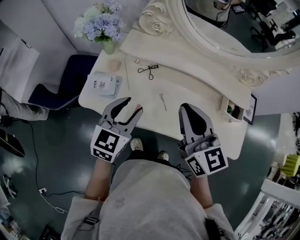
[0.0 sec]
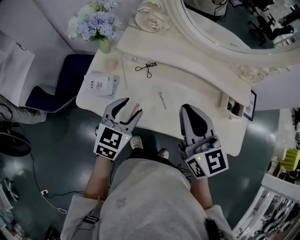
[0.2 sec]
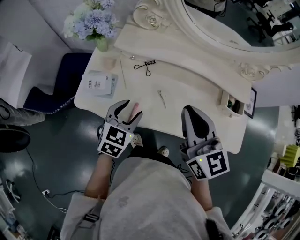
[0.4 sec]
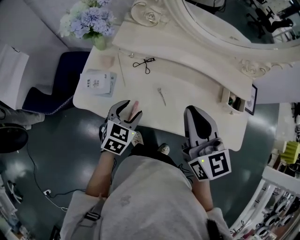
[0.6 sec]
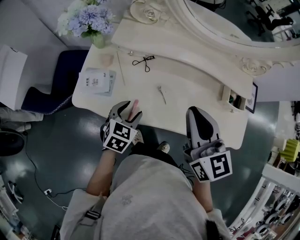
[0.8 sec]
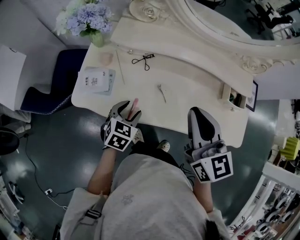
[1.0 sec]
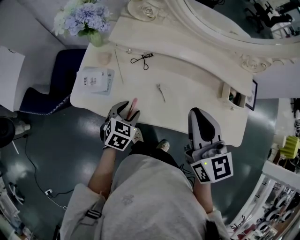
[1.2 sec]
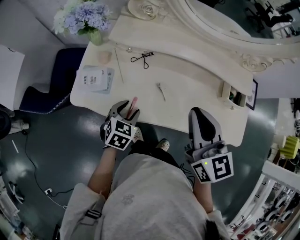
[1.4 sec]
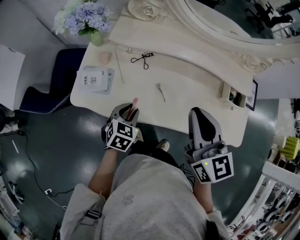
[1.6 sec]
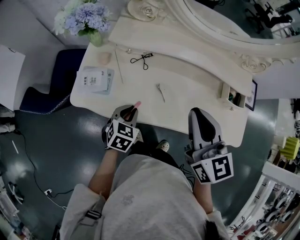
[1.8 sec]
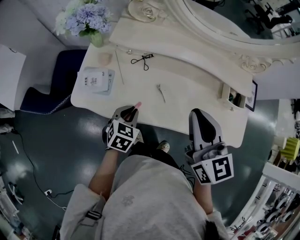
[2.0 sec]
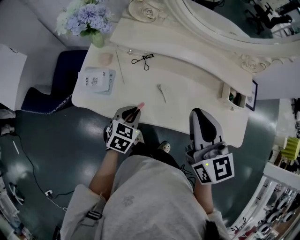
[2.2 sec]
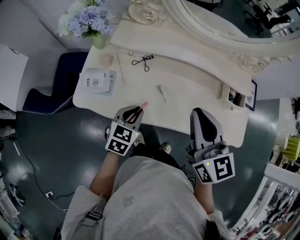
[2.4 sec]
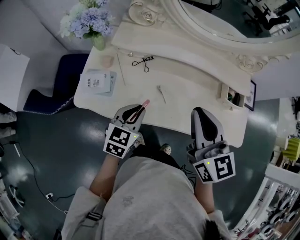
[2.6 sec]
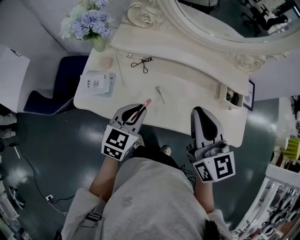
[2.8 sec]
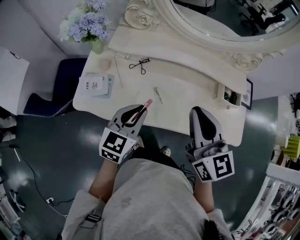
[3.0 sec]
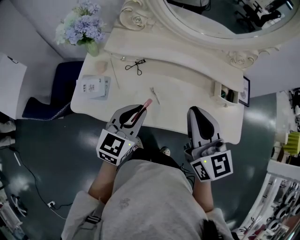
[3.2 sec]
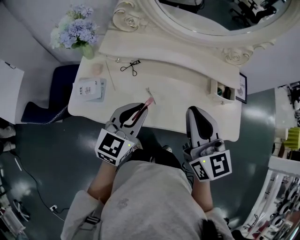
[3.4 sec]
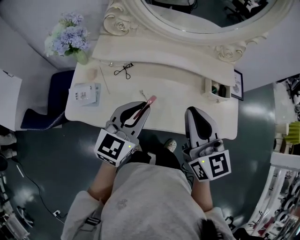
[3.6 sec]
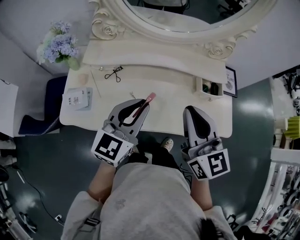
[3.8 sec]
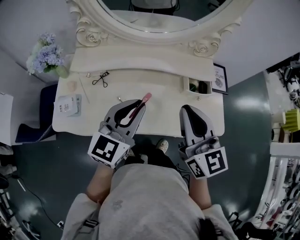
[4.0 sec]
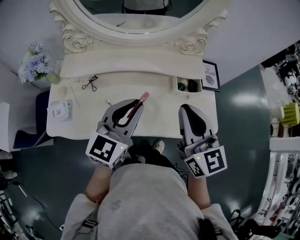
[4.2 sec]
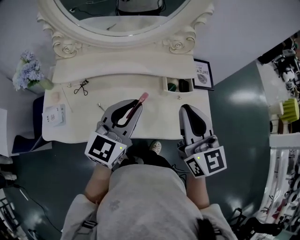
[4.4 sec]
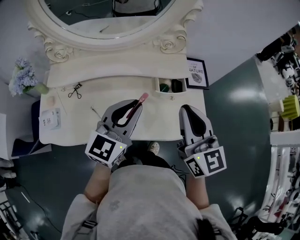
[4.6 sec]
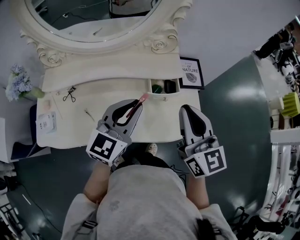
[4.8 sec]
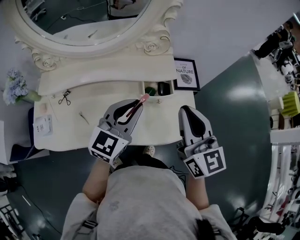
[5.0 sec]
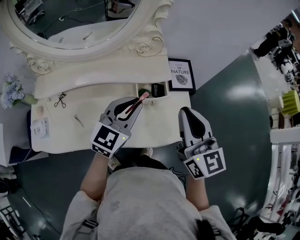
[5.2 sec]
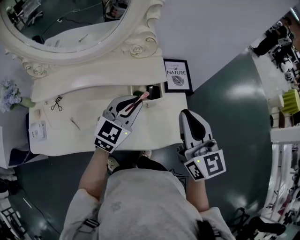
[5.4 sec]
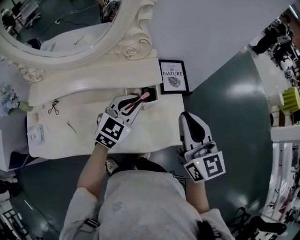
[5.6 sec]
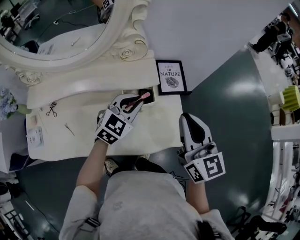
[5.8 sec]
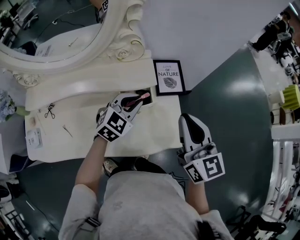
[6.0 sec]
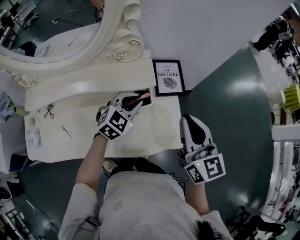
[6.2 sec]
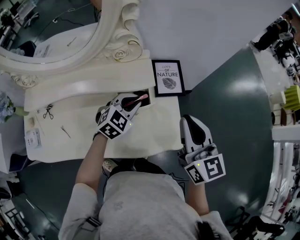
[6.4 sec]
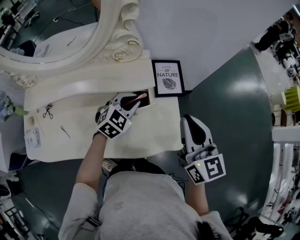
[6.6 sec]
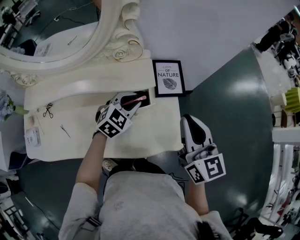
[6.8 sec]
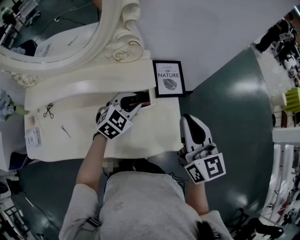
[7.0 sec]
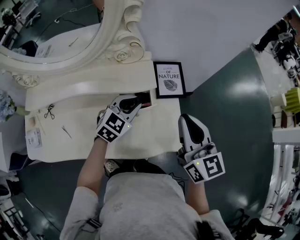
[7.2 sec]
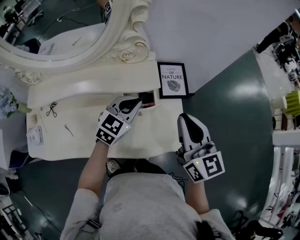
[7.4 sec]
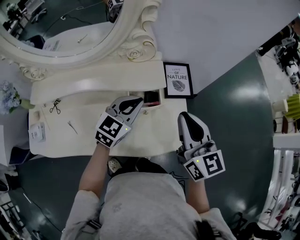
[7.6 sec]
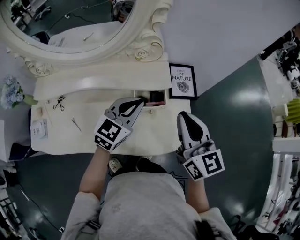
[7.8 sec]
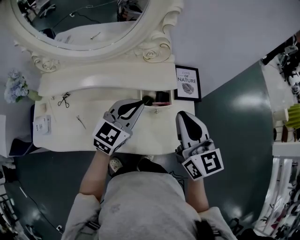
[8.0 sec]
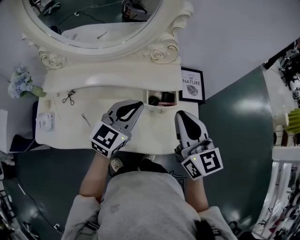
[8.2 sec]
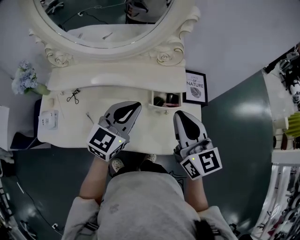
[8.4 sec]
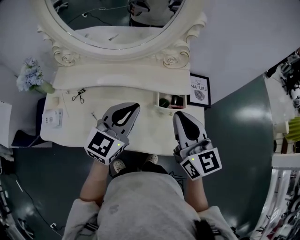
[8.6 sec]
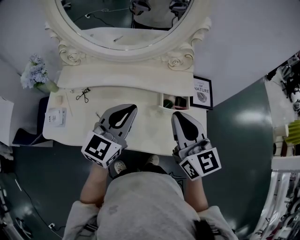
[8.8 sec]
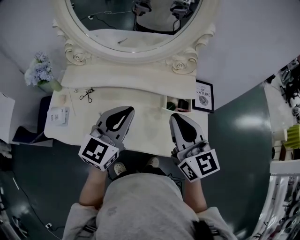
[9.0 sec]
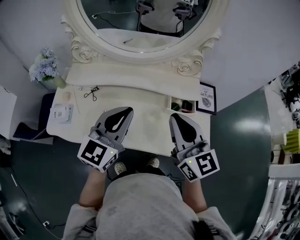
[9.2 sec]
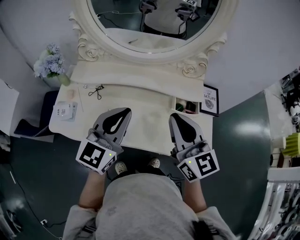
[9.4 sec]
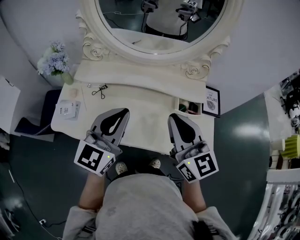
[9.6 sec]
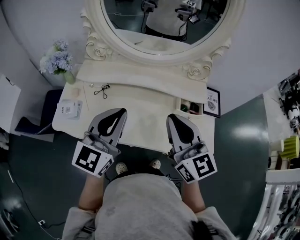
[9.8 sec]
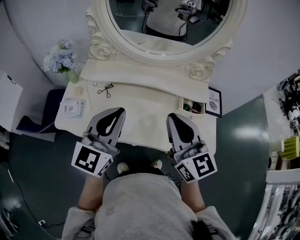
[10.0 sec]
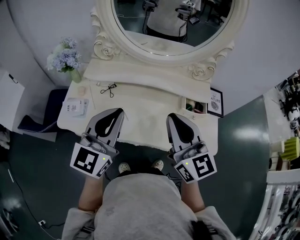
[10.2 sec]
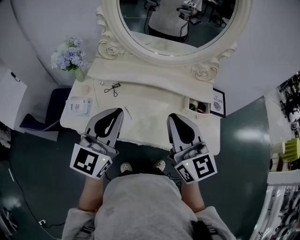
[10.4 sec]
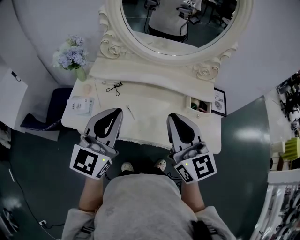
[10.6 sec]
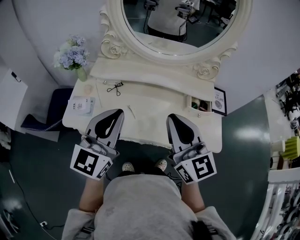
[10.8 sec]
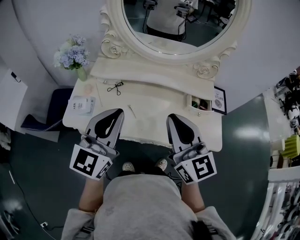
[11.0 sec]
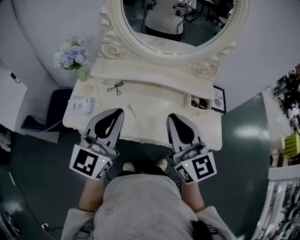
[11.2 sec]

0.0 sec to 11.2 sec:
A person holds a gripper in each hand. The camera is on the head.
0.0 sec to 1.6 sec: The left gripper goes some 15 cm downward, and rotates about 30 degrees.
1.6 sec to 3.2 sec: The left gripper goes roughly 15 cm upward, and angles its fingers upward, by roughly 30 degrees.
3.2 sec to 4.8 sec: Both grippers move to the right, roughly 30 cm. The left gripper rotates some 20 degrees.
4.8 sec to 6.4 sec: The left gripper moves downward, forward and to the right, some 25 cm, and changes its angle by approximately 40 degrees, while the right gripper goes roughly 15 cm to the right and forward.
6.4 sec to 8.0 sec: The left gripper goes some 15 cm upward, to the left and backward, and changes its angle by approximately 30 degrees. Meanwhile the right gripper is displaced to the left by some 10 cm.
8.0 sec to 9.6 sec: The left gripper shifts roughly 30 cm to the left, upward and backward, and turns by roughly 30 degrees, while the right gripper travels to the left by approximately 20 cm.
9.6 sec to 11.2 sec: The grippers both shift to the left and backward by some 10 cm.

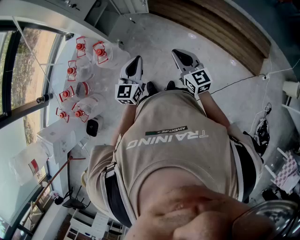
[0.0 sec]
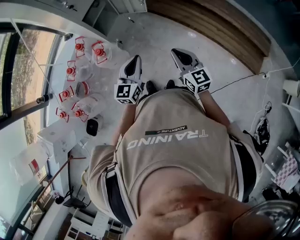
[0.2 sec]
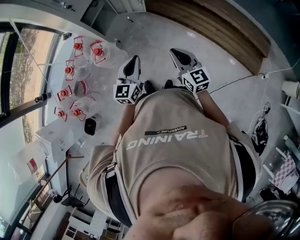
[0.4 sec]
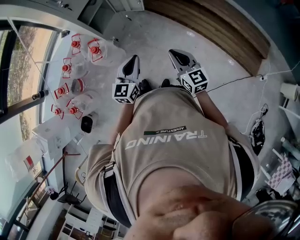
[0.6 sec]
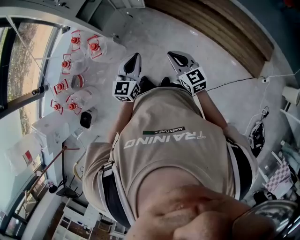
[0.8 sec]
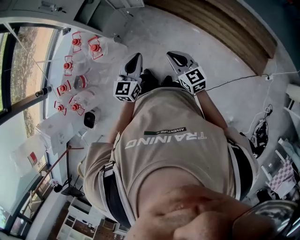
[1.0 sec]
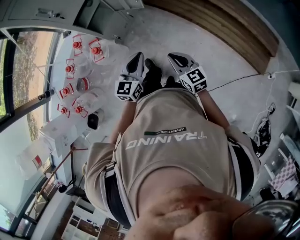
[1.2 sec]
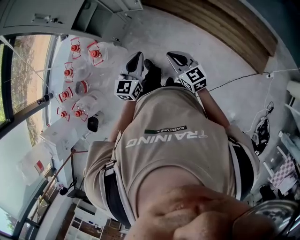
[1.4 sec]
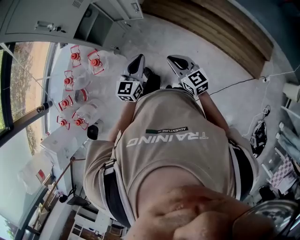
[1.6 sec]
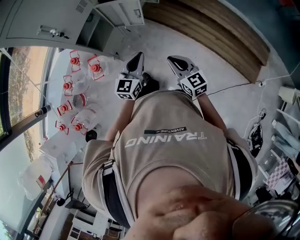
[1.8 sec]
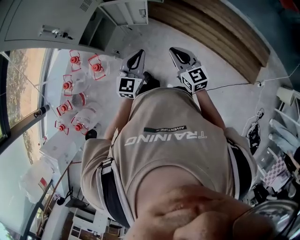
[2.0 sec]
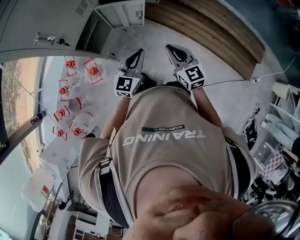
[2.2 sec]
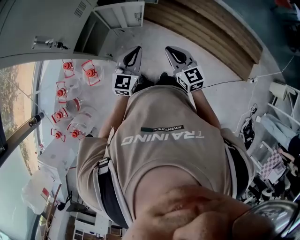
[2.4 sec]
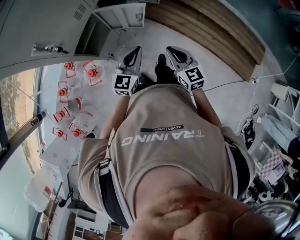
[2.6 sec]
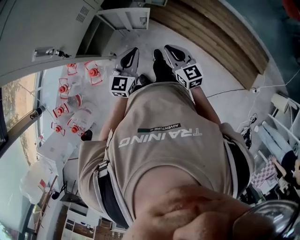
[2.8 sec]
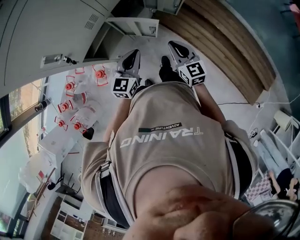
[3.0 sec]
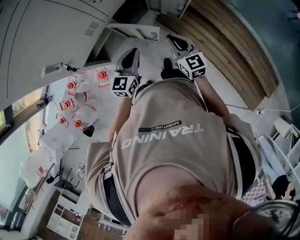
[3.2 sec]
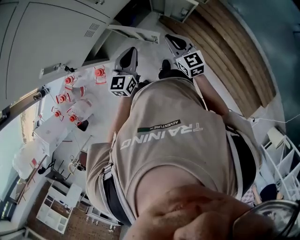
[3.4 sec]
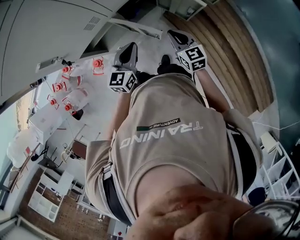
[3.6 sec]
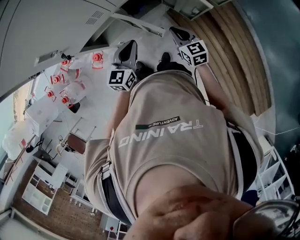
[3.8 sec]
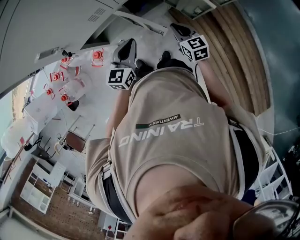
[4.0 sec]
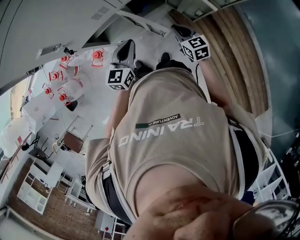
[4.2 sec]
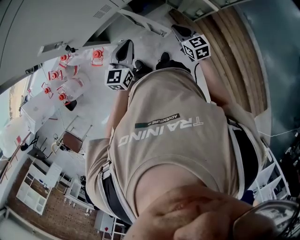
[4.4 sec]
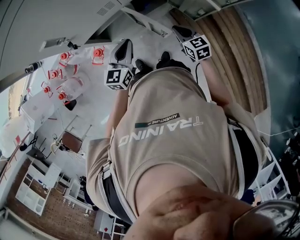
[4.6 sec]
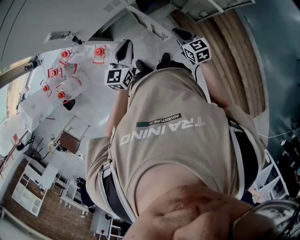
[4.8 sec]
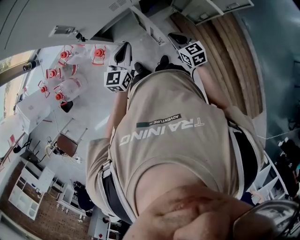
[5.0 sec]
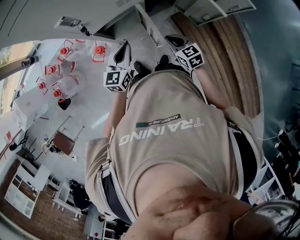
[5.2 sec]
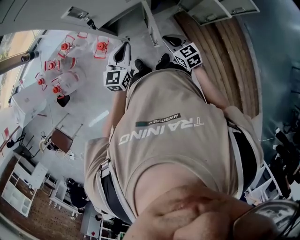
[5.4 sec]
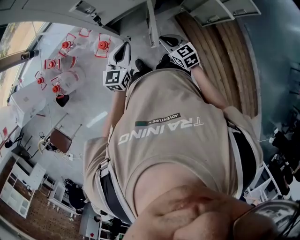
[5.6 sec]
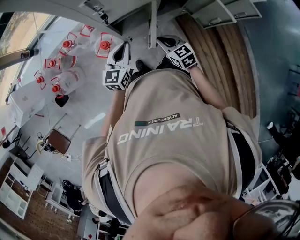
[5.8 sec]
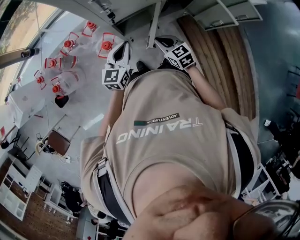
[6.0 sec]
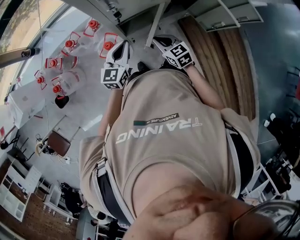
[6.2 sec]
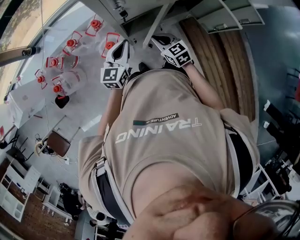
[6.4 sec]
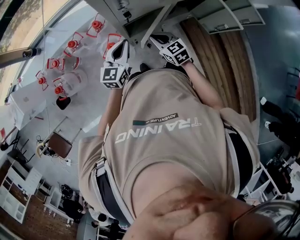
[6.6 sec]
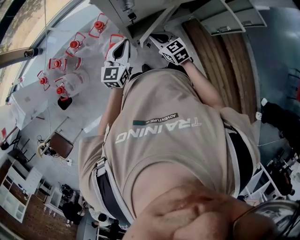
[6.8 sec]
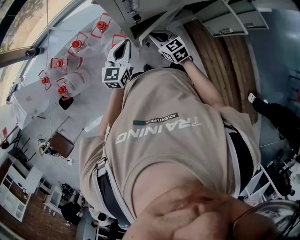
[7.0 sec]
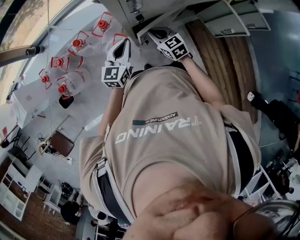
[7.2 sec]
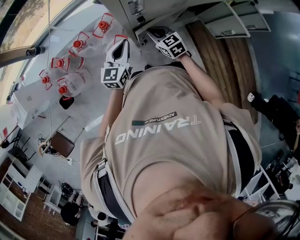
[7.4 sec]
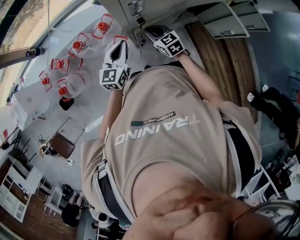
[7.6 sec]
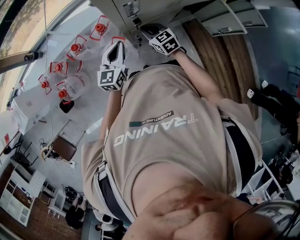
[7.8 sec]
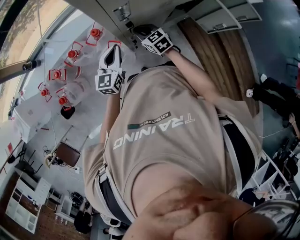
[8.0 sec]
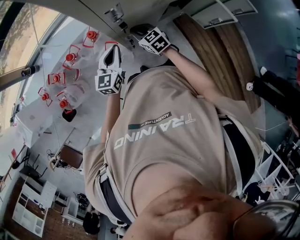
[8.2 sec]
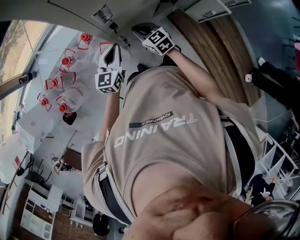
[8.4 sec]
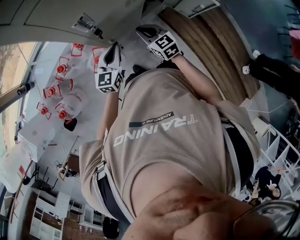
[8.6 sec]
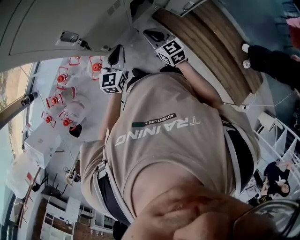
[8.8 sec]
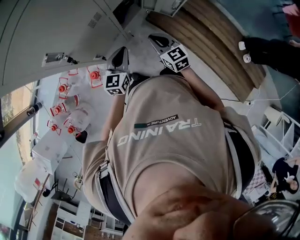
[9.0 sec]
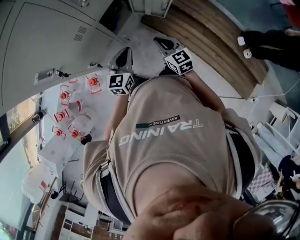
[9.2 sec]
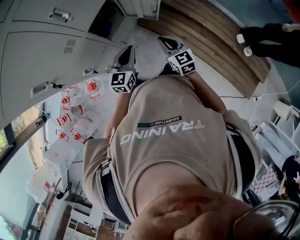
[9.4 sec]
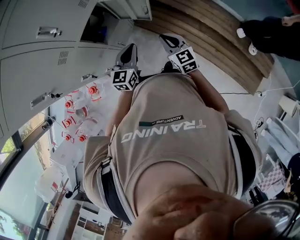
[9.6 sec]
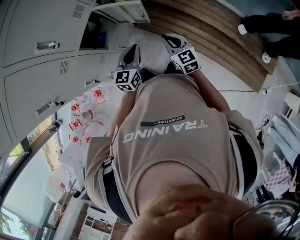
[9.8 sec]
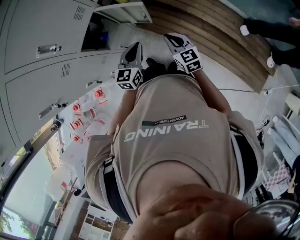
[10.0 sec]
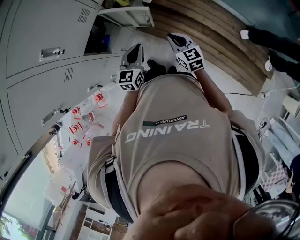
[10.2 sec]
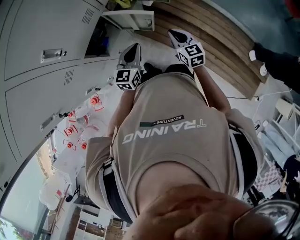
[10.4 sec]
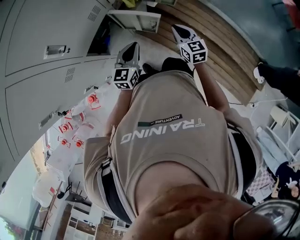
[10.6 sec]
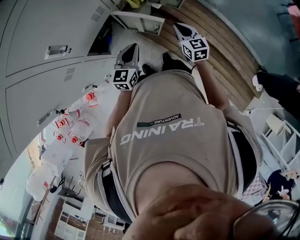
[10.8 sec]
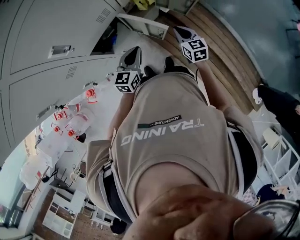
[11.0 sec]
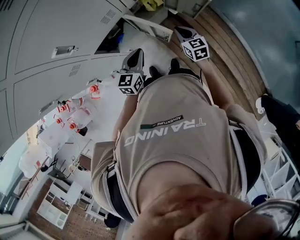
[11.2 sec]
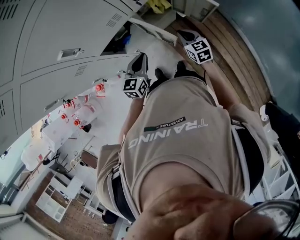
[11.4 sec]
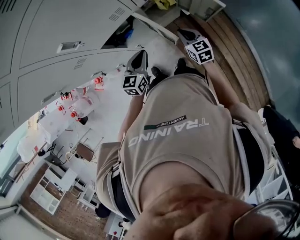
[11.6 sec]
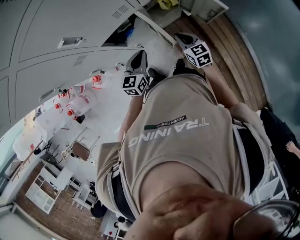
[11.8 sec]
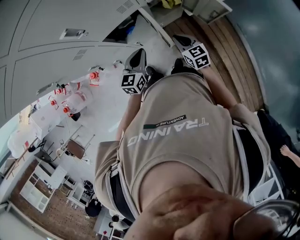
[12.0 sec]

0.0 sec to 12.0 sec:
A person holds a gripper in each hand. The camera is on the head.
0.0 sec to 1.6 sec: The left gripper shifts about 15 cm forward and to the right. Meanwhile the right gripper shifts roughly 10 cm forward and downward.
1.6 sec to 3.0 sec: The two grippers go about 30 cm forward.
3.0 sec to 4.4 sec: The left gripper changes place by approximately 10 cm, and rotates approximately 20 degrees. Meanwhile the right gripper changes place by approximately 15 cm, and swivels some 30 degrees.
4.4 sec to 6.0 sec: The grippers both shift to the left by about 20 cm.
6.0 sec to 7.6 sec: The left gripper travels to the left and forward by some 10 cm, while the right gripper moves forward and to the left, about 15 cm.
7.6 sec to 9.0 sec: The left gripper ends up about 25 cm from where it was, and swivels some 20 degrees; the right gripper moves about 30 cm, and turns by some 30 degrees.
9.0 sec to 10.4 sec: The grippers both shift to the right and forward by roughly 30 cm.
10.4 sec to 12.0 sec: The left gripper shifts by some 5 cm, and rotates some 30 degrees. Meanwhile the right gripper moves some 15 cm, and swivels approximately 30 degrees.
